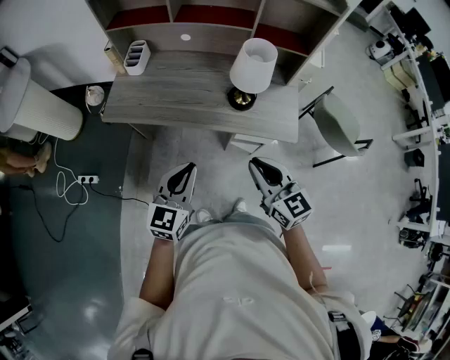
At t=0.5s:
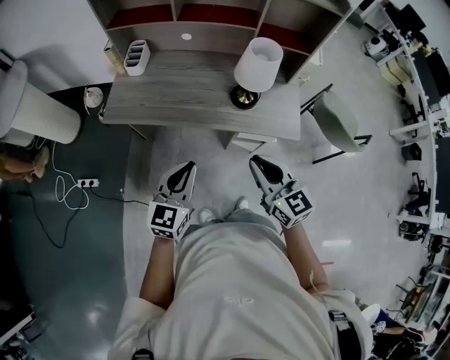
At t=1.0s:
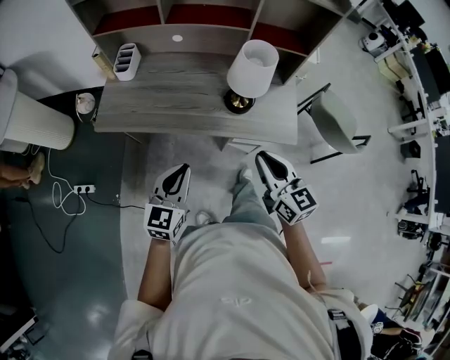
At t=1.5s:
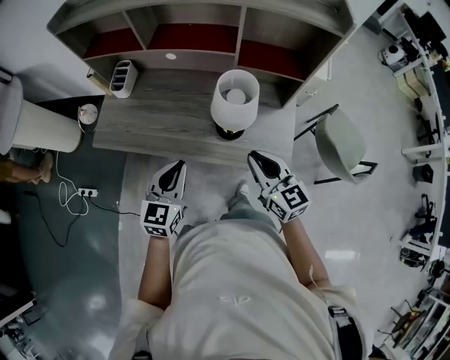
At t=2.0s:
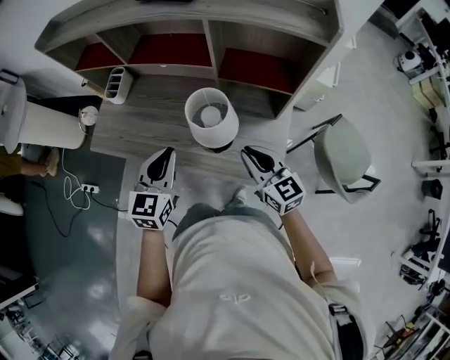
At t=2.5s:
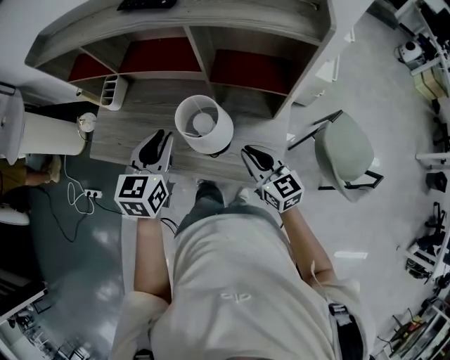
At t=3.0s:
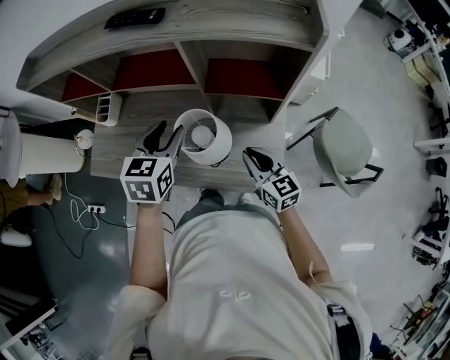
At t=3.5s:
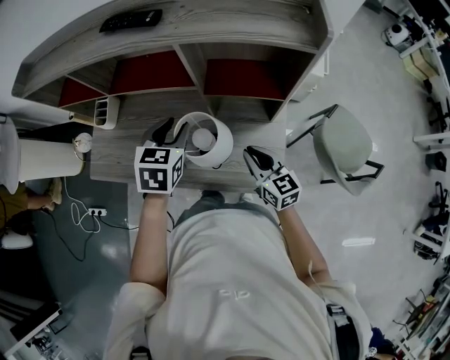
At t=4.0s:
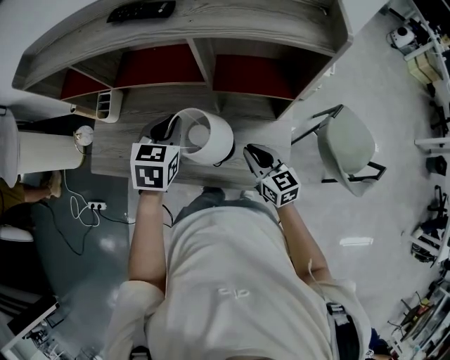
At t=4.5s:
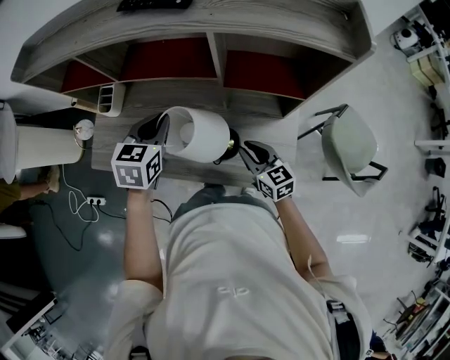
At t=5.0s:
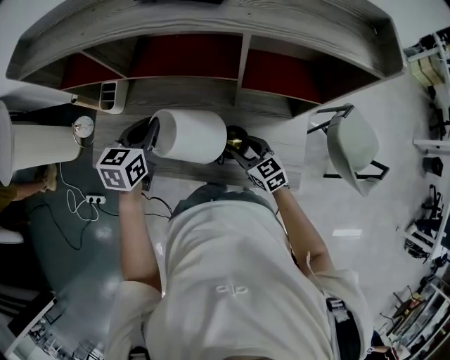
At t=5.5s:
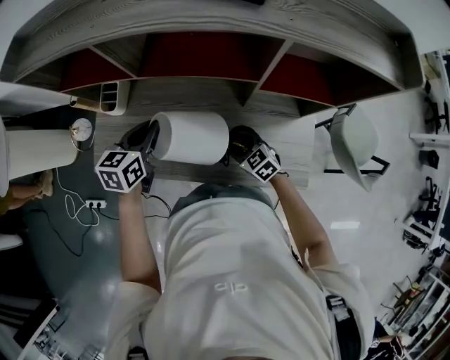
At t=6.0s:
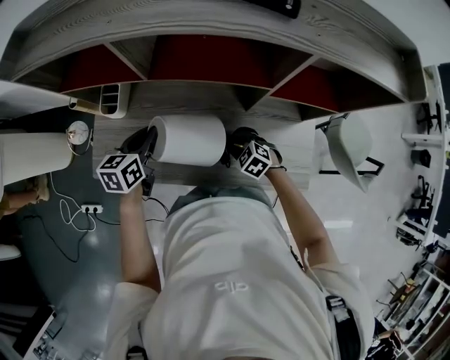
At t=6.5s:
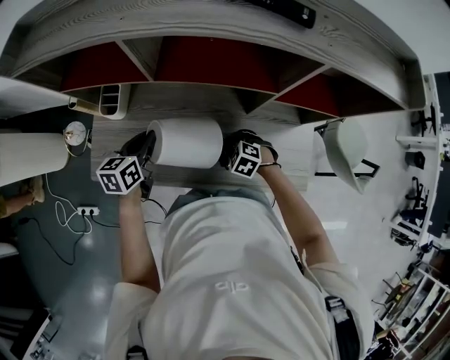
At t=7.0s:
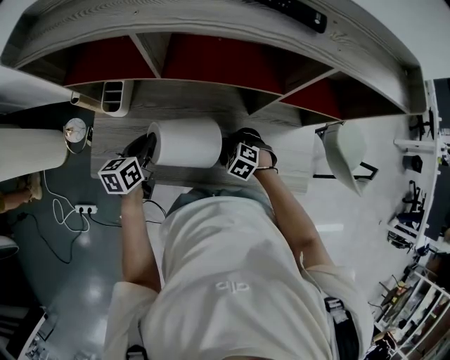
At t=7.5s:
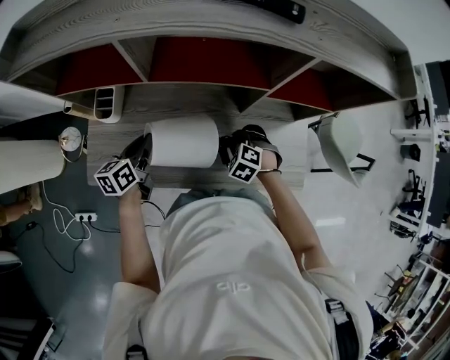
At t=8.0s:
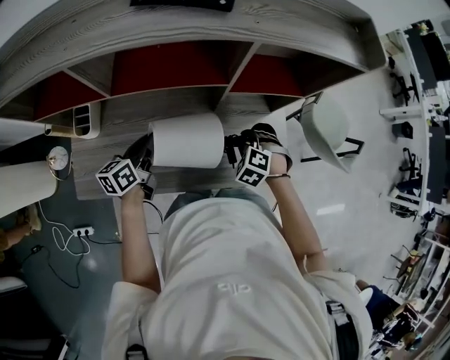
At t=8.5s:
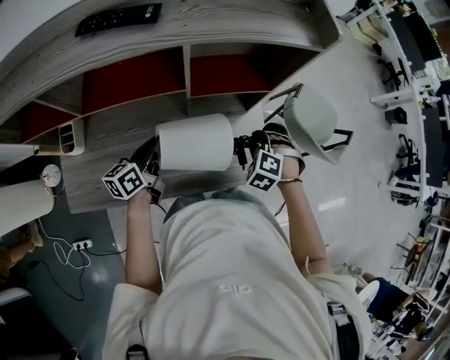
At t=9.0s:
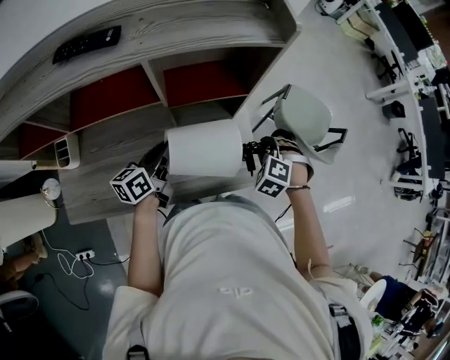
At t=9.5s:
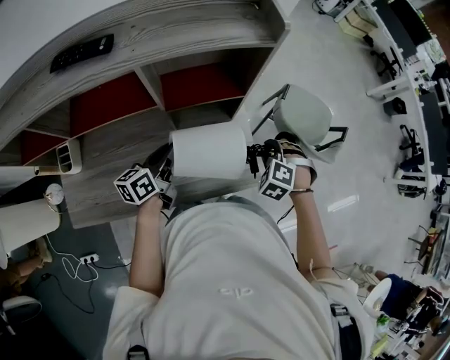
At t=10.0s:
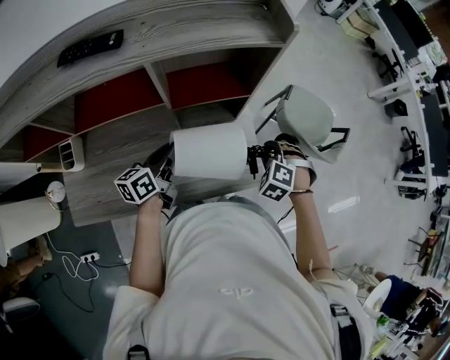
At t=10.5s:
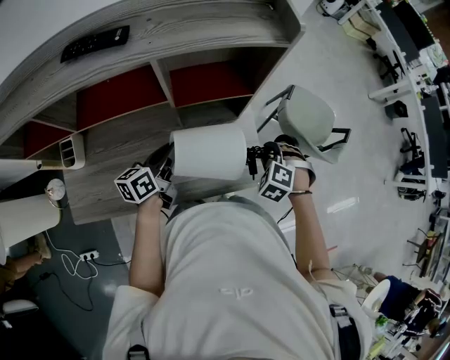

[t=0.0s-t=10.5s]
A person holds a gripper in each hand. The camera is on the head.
t=0.0s to t=2.0s: Both grippers move forward and to the right, about 30 cm.
t=2.0s to t=4.0s: The left gripper heads forward, covering approximately 15 cm, and opens and closes again. The right gripper is displaced downward and forward by some 10 cm.
t=4.0s to t=6.5s: The left gripper is displaced to the left and downward by roughly 30 cm, and rotates approximately 30 degrees. The right gripper travels to the left, downward and forward by about 30 cm, angles its fingers downward, by roughly 50 degrees, and opens its fingers.
t=6.5s to t=8.5s: The right gripper changes place by some 30 cm, and turns by some 30 degrees. The left gripper ends up about 25 cm from where it was, and changes its angle by roughly 20 degrees.
t=8.5s to t=10.5s: Both grippers travel together to the right, roughly 10 cm.

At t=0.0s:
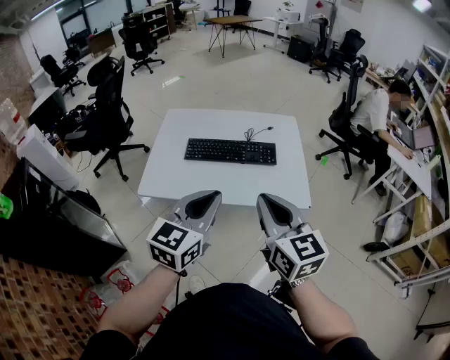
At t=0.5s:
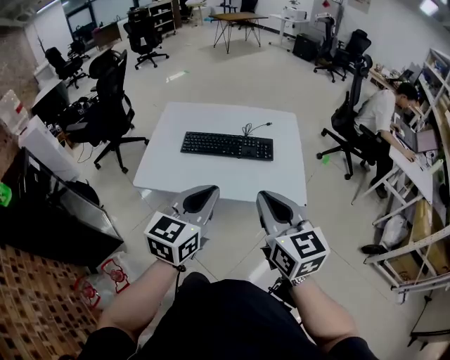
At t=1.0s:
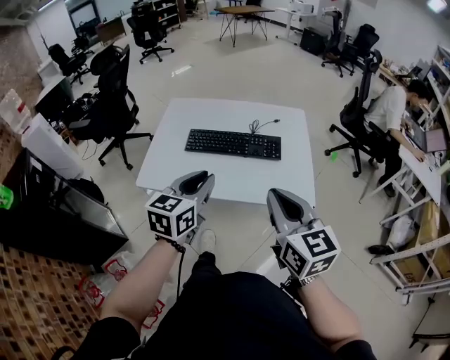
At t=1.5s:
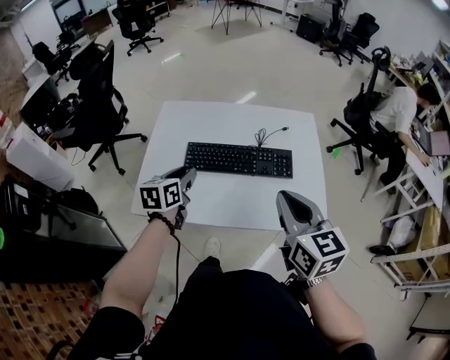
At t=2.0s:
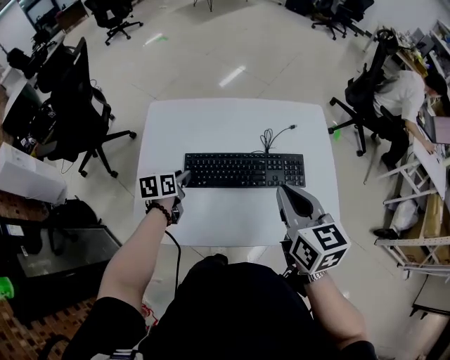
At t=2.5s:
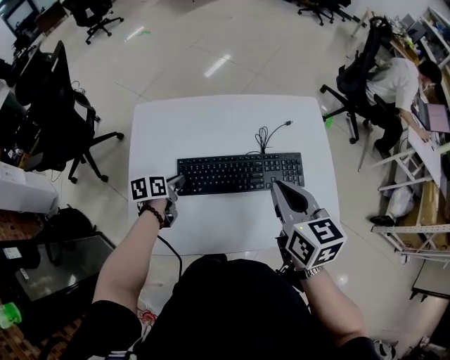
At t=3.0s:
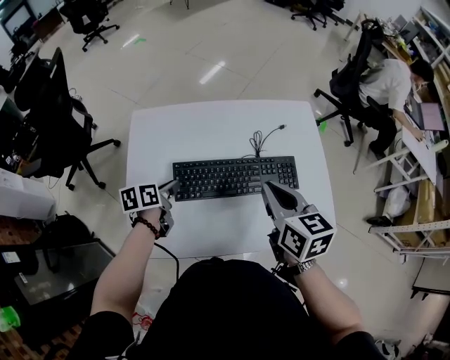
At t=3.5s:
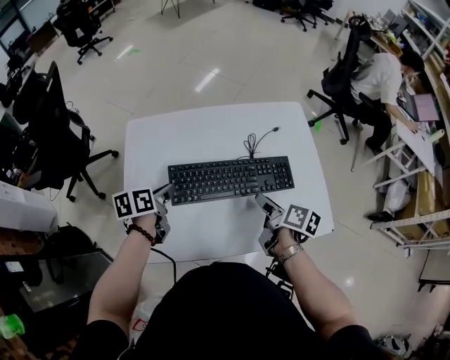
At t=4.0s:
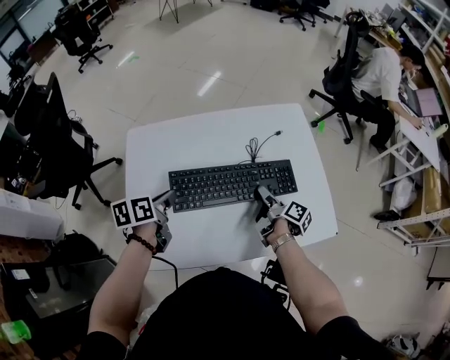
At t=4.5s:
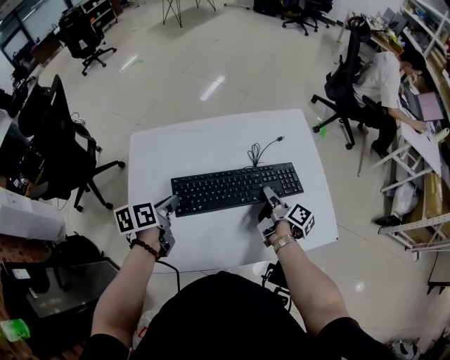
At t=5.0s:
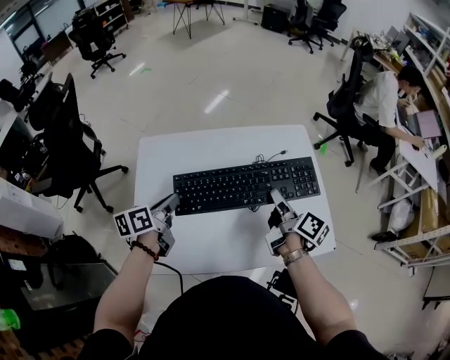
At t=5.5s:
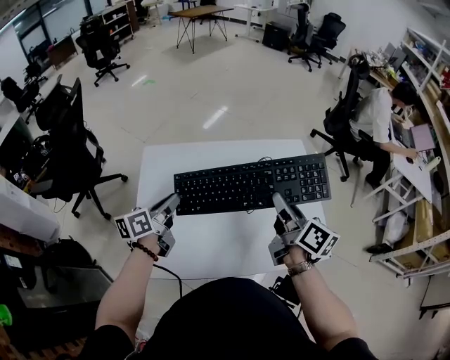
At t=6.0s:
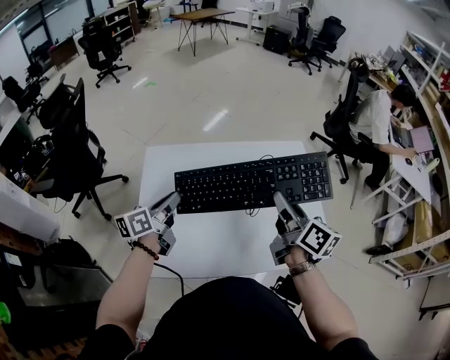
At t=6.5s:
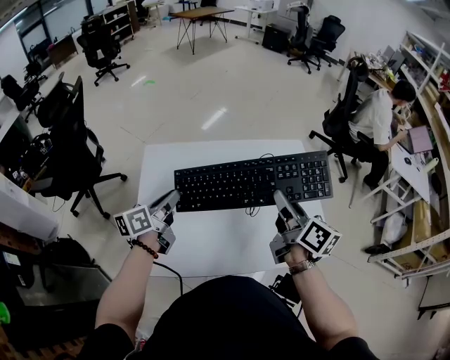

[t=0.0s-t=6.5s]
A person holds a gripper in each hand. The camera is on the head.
t=0.0s to t=2.0s: The left gripper goes roughly 50 cm forward, downward and to the left, points its fingers approximately 30 degrees further downward, and opens. The right gripper travels forward by about 25 cm.
t=2.0s to t=4.5s: The right gripper travels downward and forward by about 25 cm, rotates around the line of its fingers by roughly 70 degrees, clockwise from behind, and opens, while the left gripper is displaced upward by some 5 cm.
t=4.5s to t=6.5s: The left gripper moves upward, roughly 10 cm, and turns by some 30 degrees. The right gripper heads upward, covering about 25 cm, and rotates some 40 degrees.

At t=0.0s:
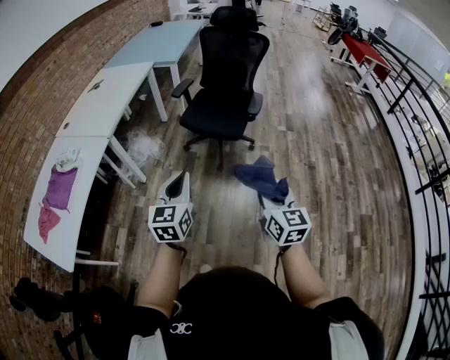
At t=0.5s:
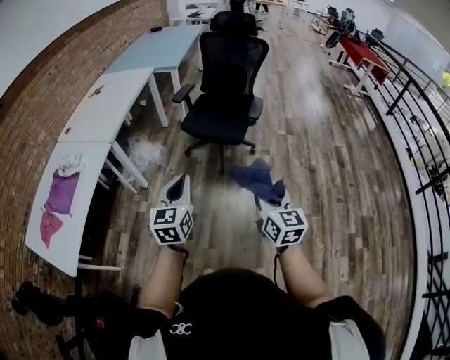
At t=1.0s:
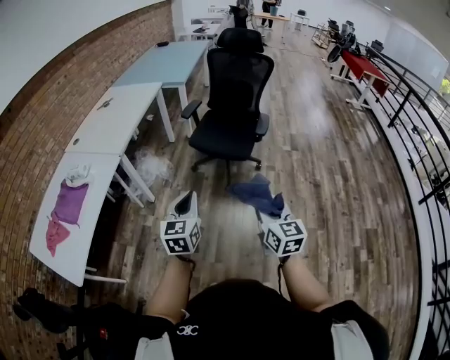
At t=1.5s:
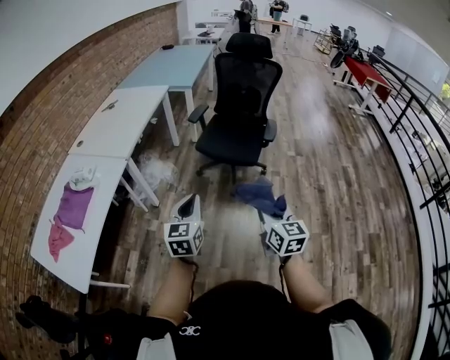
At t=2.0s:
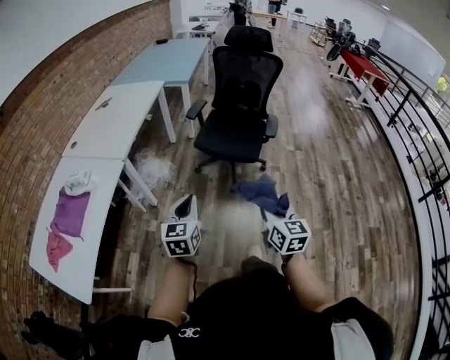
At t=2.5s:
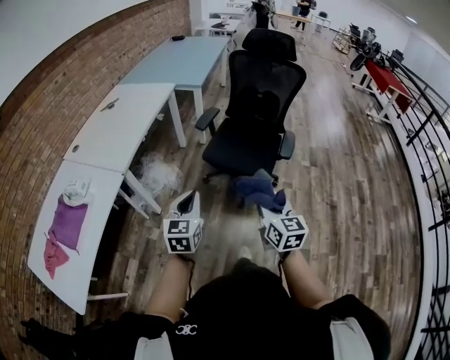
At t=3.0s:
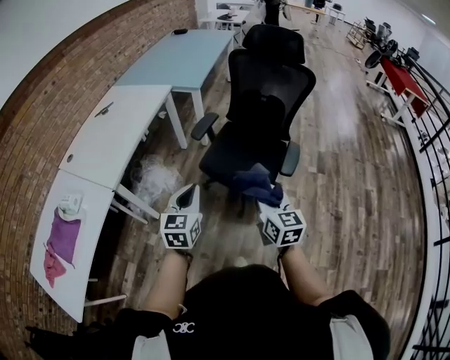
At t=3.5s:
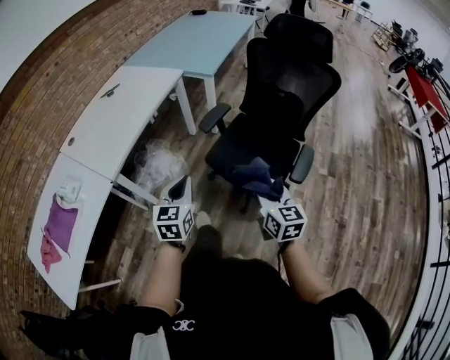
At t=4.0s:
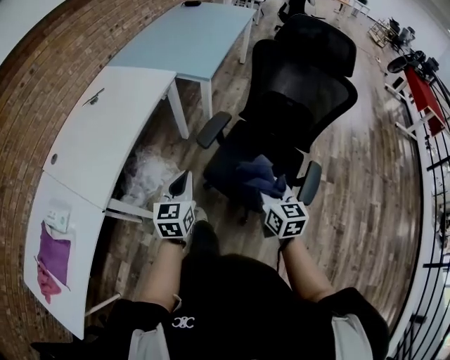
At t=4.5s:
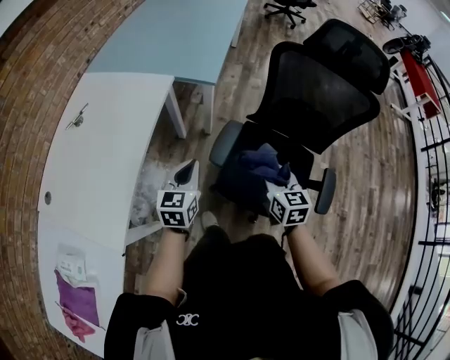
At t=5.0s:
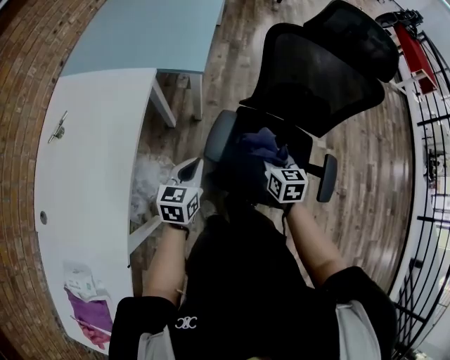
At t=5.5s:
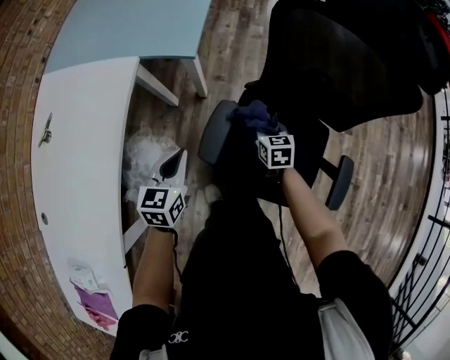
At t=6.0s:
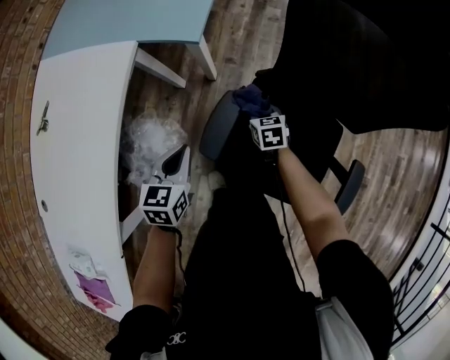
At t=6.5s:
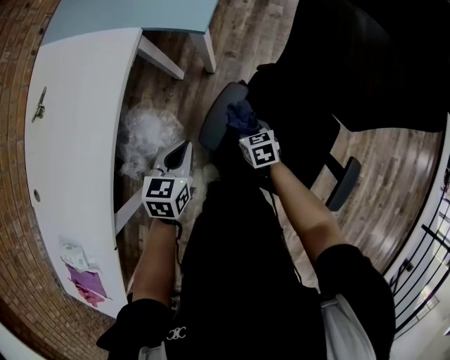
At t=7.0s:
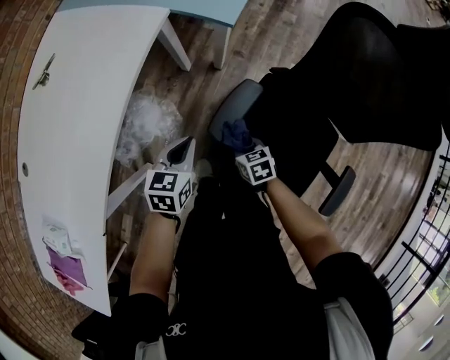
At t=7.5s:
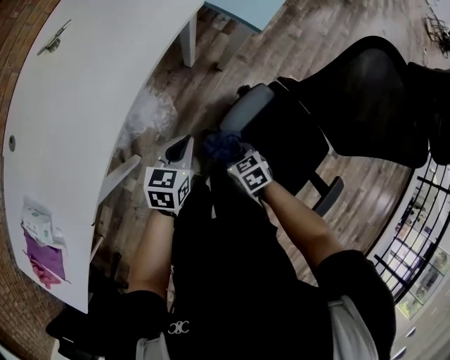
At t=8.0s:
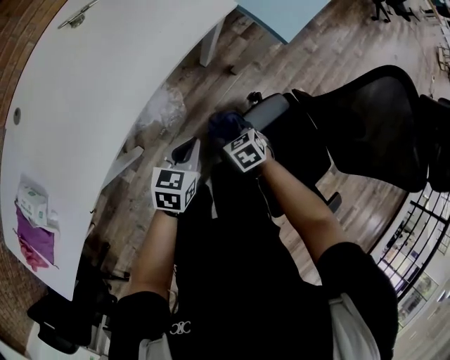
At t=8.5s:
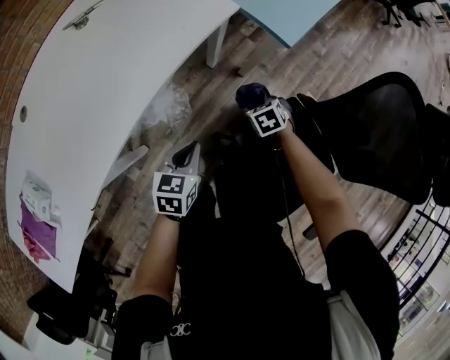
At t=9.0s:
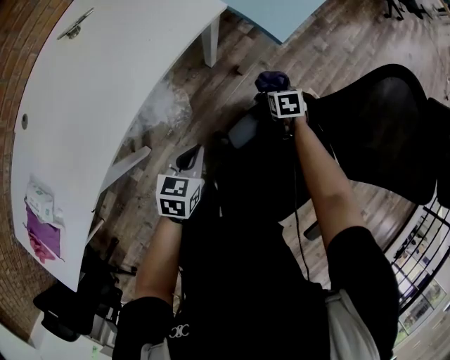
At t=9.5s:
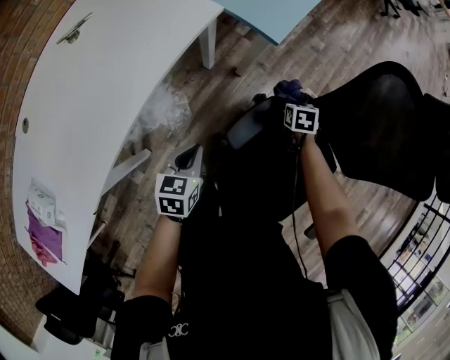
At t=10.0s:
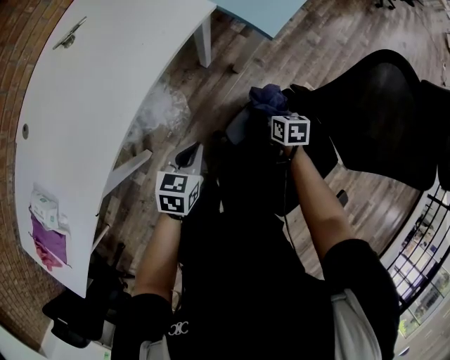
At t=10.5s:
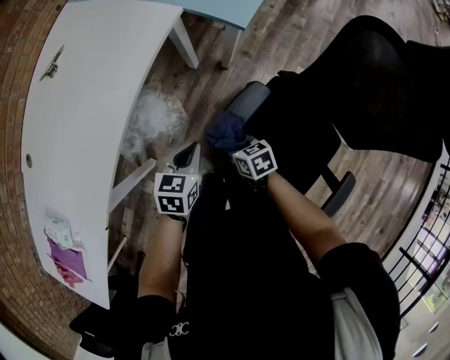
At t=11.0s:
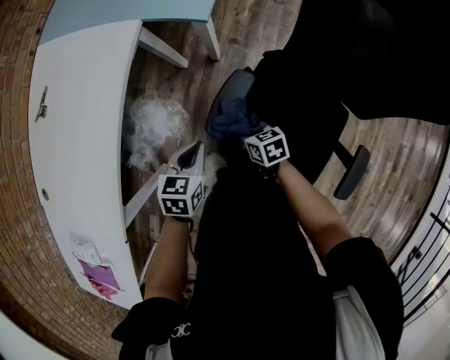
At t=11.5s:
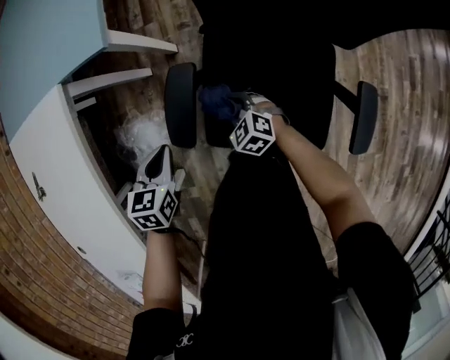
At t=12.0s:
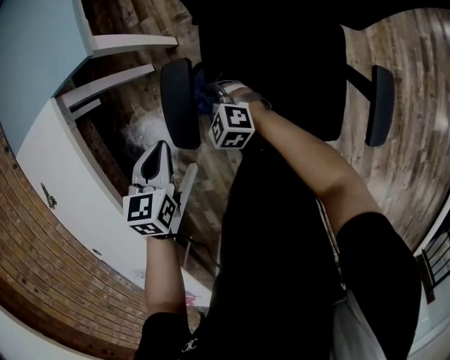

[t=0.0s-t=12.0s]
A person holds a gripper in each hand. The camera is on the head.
t=0.0s to t=2.0s: The right gripper heads to the left and forward, covering about 15 cm; the left gripper moves to the left, forward and downward, about 15 cm.
t=2.0s to t=4.0s: The pair of grippers is taken forward, some 60 cm.
t=4.0s to t=6.0s: Both grippers travel together forward and downward, approximately 40 cm. The right gripper tilts its fingers approximately 30 degrees downward. The left gripper changes its angle by about 30 degrees.
t=6.0s to t=8.0s: The right gripper changes place by some 25 cm, and rotates around the line of its fingers by approximately 40 degrees, counterclockwise from behind. The left gripper ends up about 15 cm from where it was.
t=8.0s to t=10.0s: The right gripper moves to the right and forward, some 20 cm, and swivels approximately 40 degrees.
t=10.0s to t=12.0s: The right gripper travels downward by approximately 5 cm, and turns by about 30 degrees, while the left gripper ends up roughly 15 cm from where it was, and swivels approximately 40 degrees.
